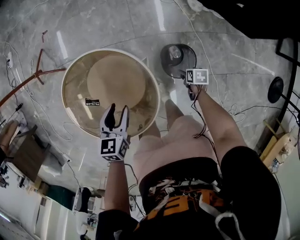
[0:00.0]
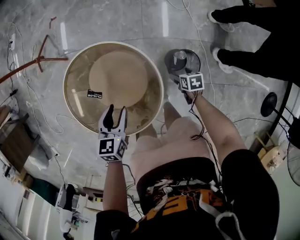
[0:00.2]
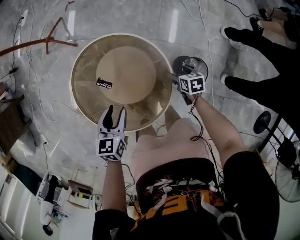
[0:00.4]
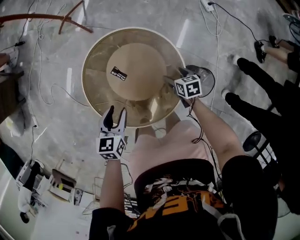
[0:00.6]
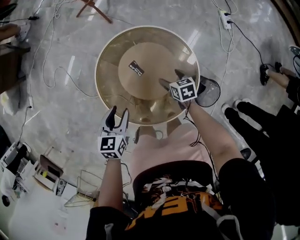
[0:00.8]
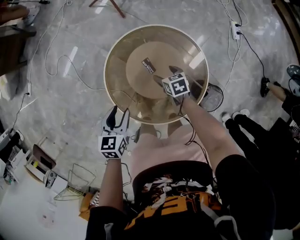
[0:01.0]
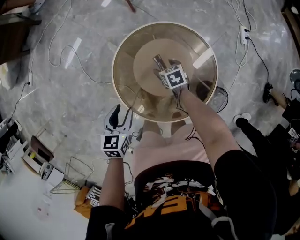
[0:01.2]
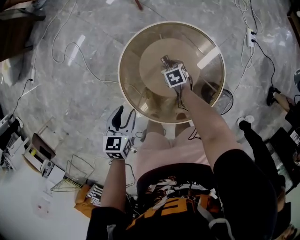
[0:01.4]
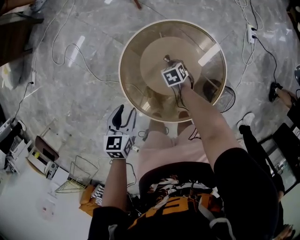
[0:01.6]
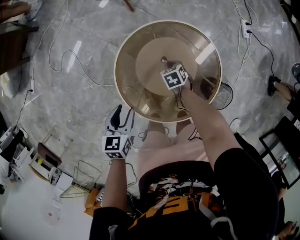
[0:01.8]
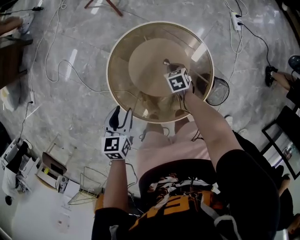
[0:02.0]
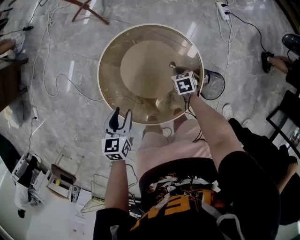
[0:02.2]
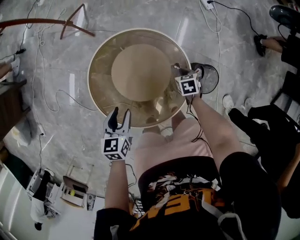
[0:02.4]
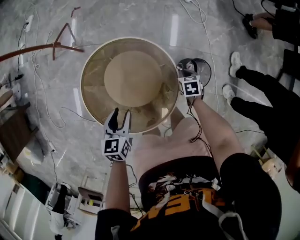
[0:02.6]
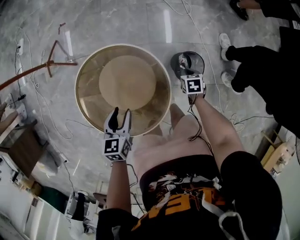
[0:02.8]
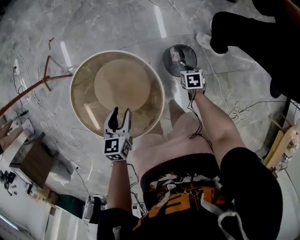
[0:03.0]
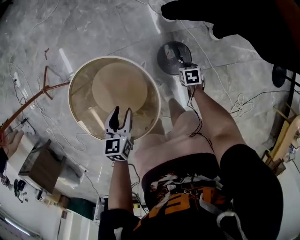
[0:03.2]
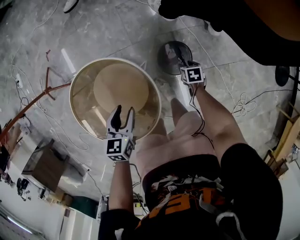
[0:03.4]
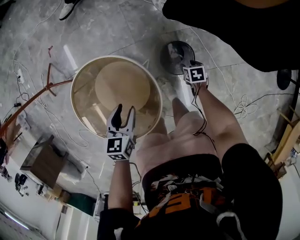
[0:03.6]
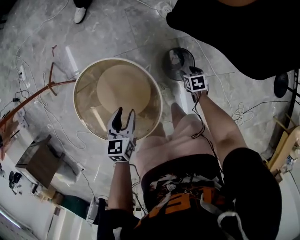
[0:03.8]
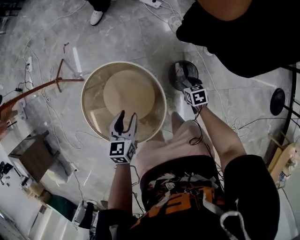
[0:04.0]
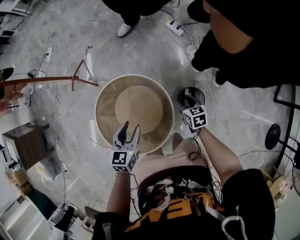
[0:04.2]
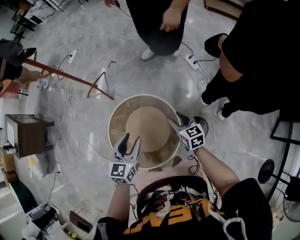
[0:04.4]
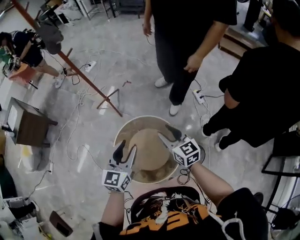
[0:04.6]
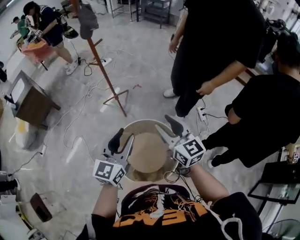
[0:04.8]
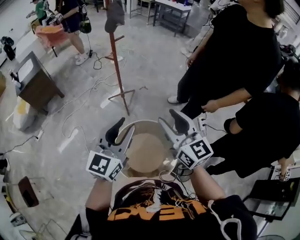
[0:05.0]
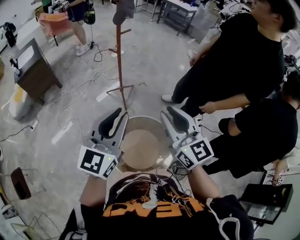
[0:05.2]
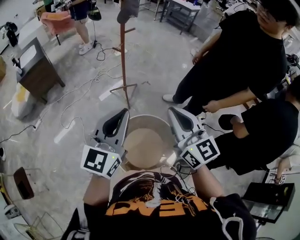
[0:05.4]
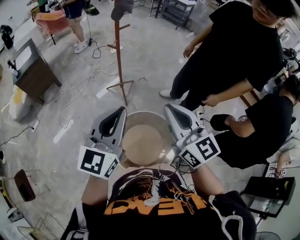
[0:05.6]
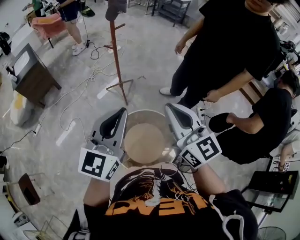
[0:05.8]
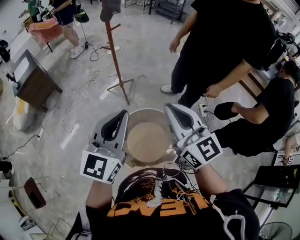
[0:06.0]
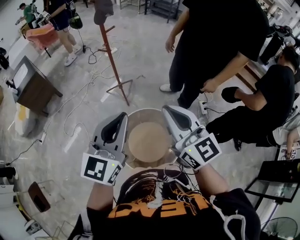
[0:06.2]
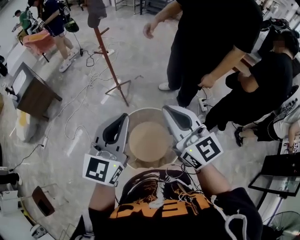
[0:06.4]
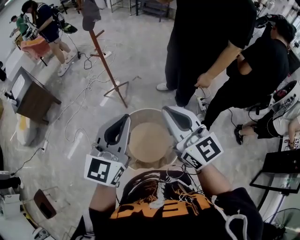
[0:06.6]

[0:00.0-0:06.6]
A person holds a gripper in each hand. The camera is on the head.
0:00.0 to 0:01.6: The pair of grippers is taken about 50 cm. The left gripper swivels roughly 40 degrees. The right gripper twists some 70 degrees counterclockwise, seen from behind, and closes.
0:01.6 to 0:03.2: The pair of grippers is taken about 50 cm. The left gripper changes its angle by some 50 degrees; the right gripper rolls clockwise, seen from behind, by approximately 70 degrees.
0:03.2 to 0:05.0: The two grippers go about 70 cm upward. The right gripper points its fingers about 70 degrees further upward, and opens its fingers. Meanwhile the left gripper points its fingers some 50 degrees further upward.
0:05.0 to 0:06.6: The left gripper goes roughly 5 cm to the right, and closes up. Meanwhile the right gripper shifts by about 5 cm, and closes its fingers.

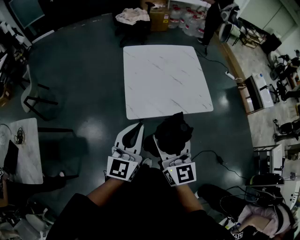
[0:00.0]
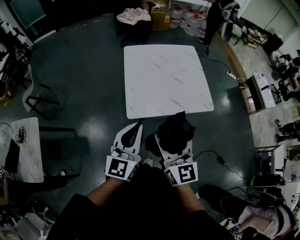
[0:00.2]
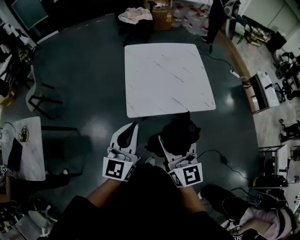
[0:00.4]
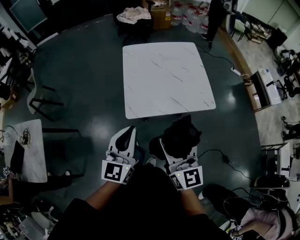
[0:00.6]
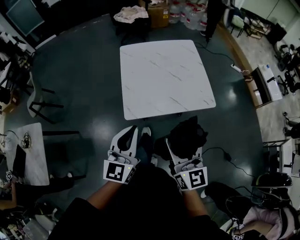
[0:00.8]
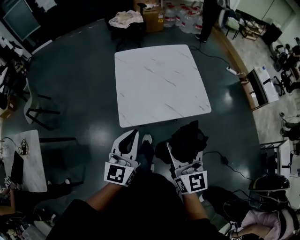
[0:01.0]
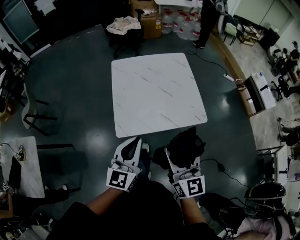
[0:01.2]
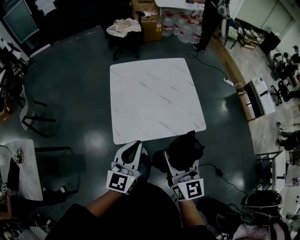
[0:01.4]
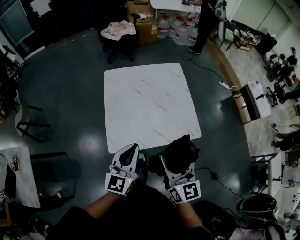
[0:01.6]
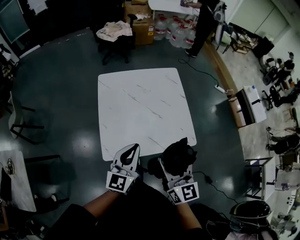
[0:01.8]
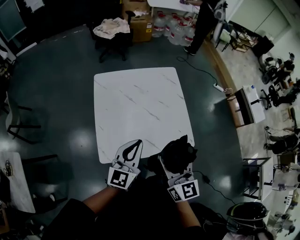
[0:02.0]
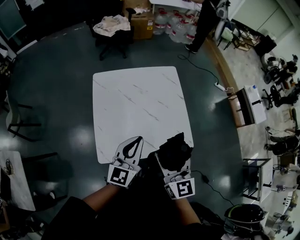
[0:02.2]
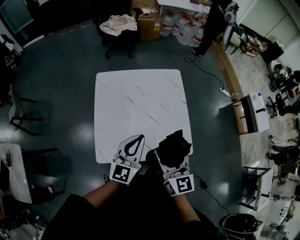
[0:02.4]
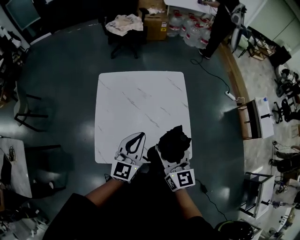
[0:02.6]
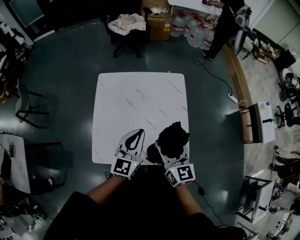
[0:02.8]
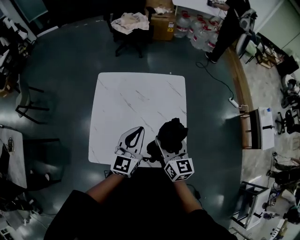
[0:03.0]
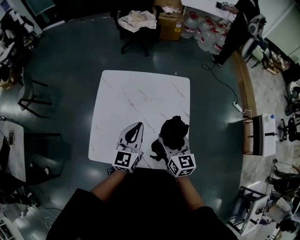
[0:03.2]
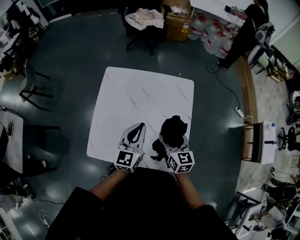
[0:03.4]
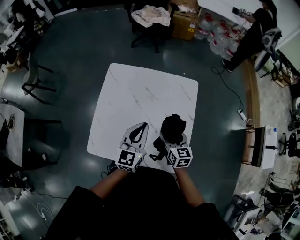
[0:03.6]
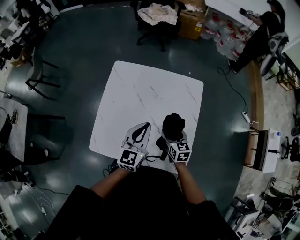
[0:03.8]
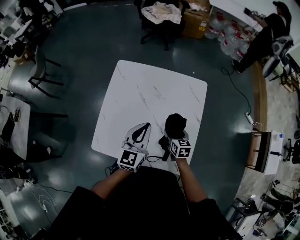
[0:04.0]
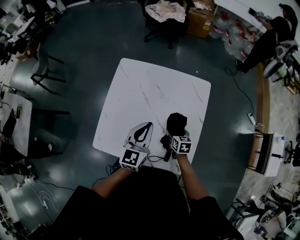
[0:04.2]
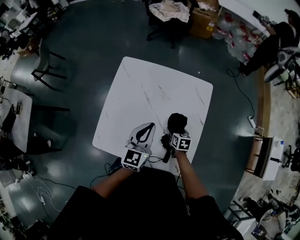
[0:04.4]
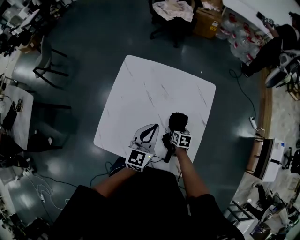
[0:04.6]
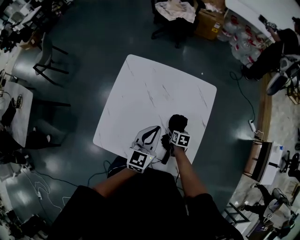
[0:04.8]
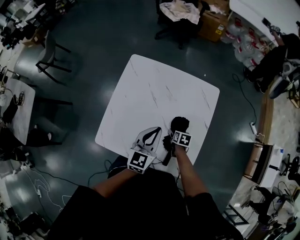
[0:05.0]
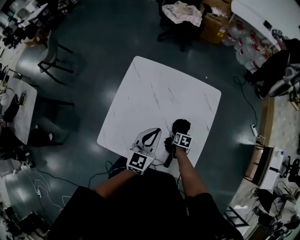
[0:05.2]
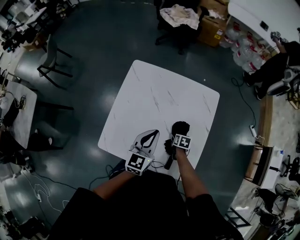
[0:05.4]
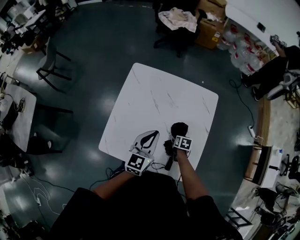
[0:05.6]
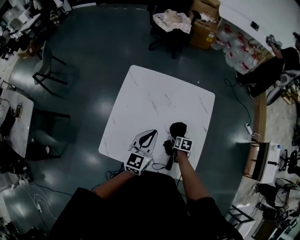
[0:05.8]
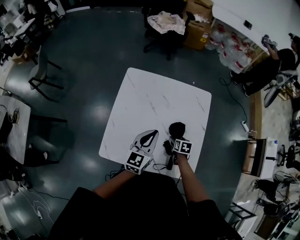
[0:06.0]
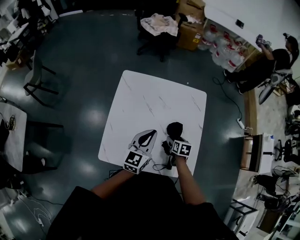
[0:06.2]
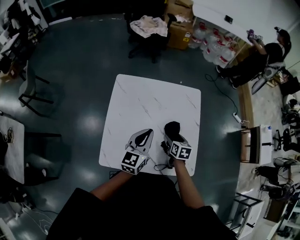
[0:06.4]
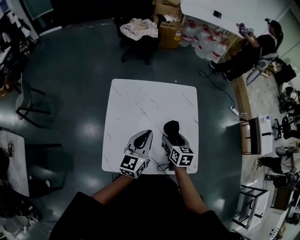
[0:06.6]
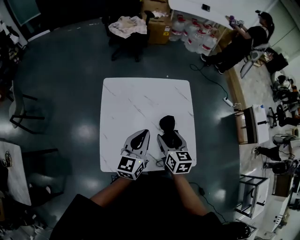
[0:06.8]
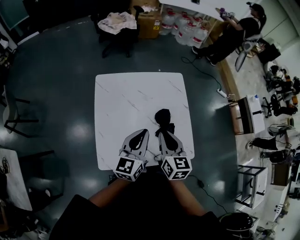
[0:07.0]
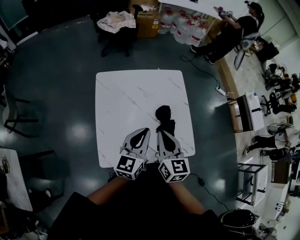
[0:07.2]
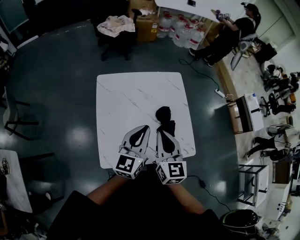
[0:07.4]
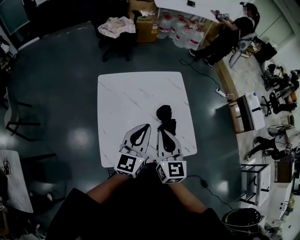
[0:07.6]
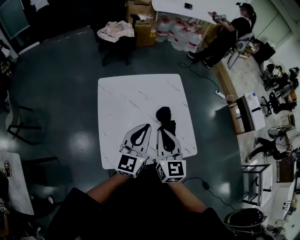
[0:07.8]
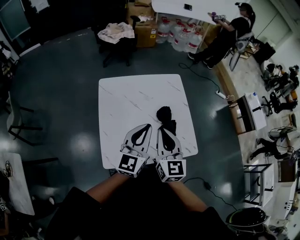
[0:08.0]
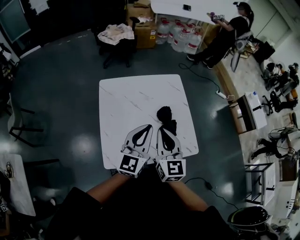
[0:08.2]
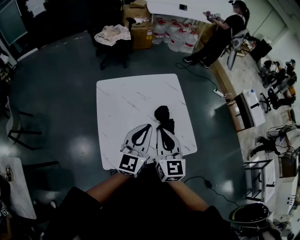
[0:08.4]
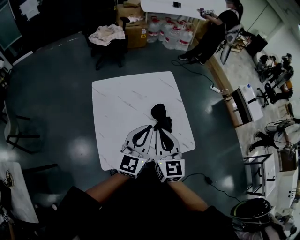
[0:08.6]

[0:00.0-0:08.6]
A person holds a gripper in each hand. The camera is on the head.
0:00.0 to 0:01.4: The left gripper moves forward and to the right, about 15 cm, while the right gripper moves to the right and forward, about 20 cm.
0:01.4 to 0:02.8: The right gripper goes approximately 30 cm forward, while the left gripper heads forward and to the right, covering approximately 30 cm.
0:02.8 to 0:04.4: The right gripper goes approximately 35 cm downward and forward, and points its fingers some 40 degrees further downward. The left gripper heads forward and downward, covering about 10 cm.
0:04.4 to 0:05.8: The left gripper travels to the left by approximately 5 cm.
0:05.8 to 0:07.2: The right gripper heads upward, covering roughly 35 cm, tilts its fingers about 50 degrees upward, and closes its fingers. The left gripper is displaced upward and backward by about 10 cm, and turns by roughly 20 degrees.
0:07.2 to 0:08.6: The right gripper is displaced backward by approximately 5 cm. The left gripper ends up about 5 cm from where it was.

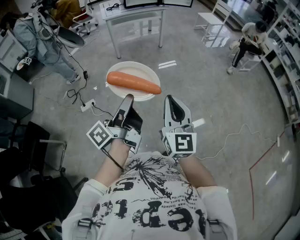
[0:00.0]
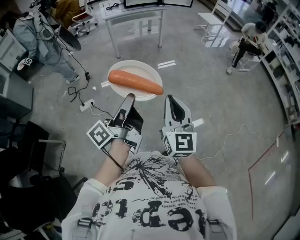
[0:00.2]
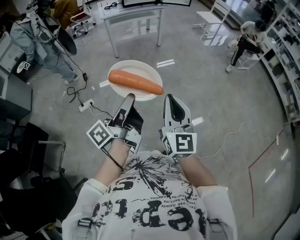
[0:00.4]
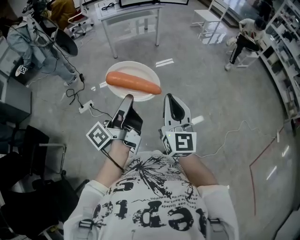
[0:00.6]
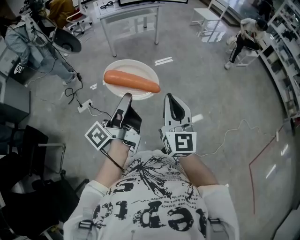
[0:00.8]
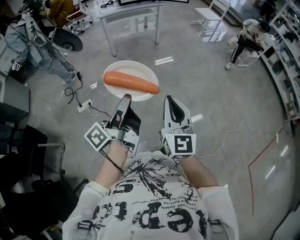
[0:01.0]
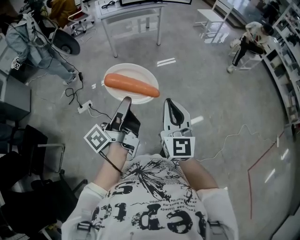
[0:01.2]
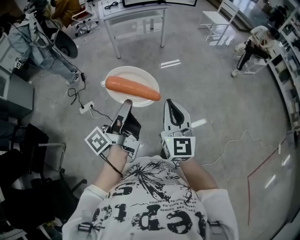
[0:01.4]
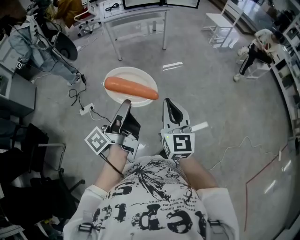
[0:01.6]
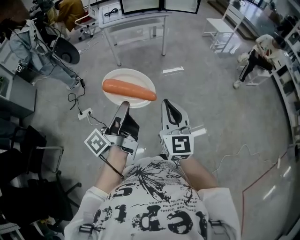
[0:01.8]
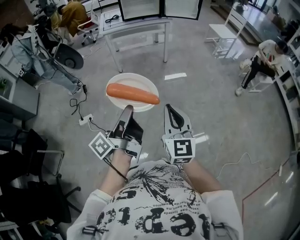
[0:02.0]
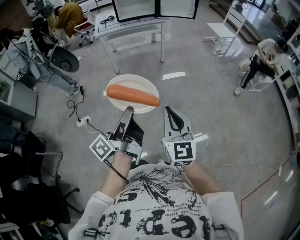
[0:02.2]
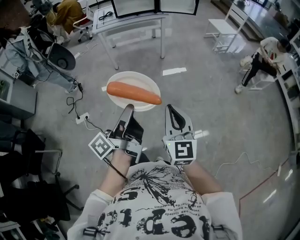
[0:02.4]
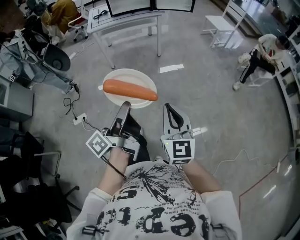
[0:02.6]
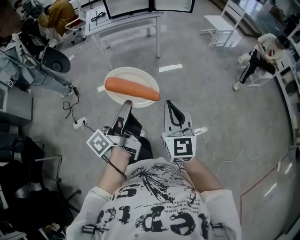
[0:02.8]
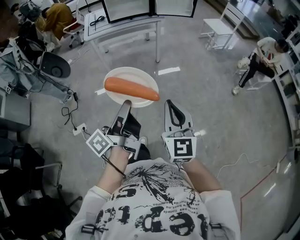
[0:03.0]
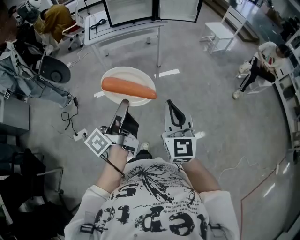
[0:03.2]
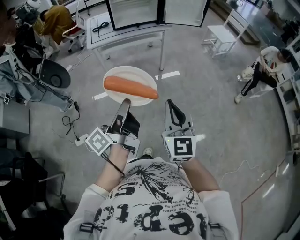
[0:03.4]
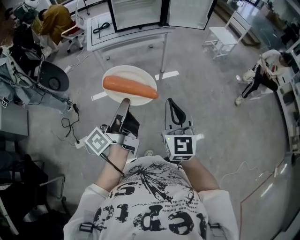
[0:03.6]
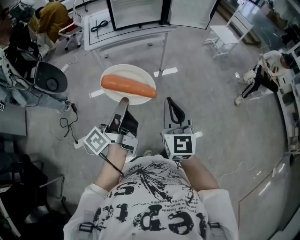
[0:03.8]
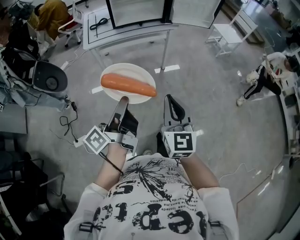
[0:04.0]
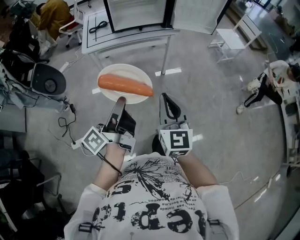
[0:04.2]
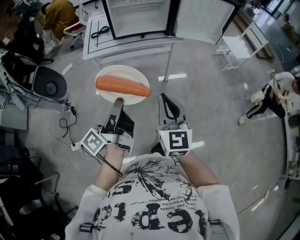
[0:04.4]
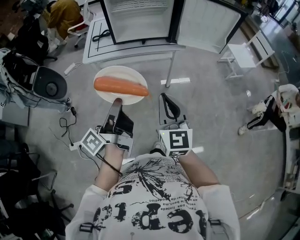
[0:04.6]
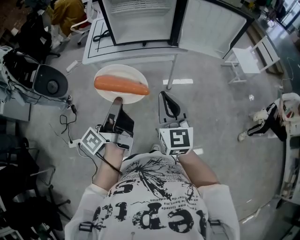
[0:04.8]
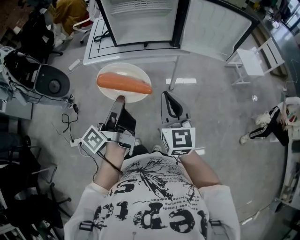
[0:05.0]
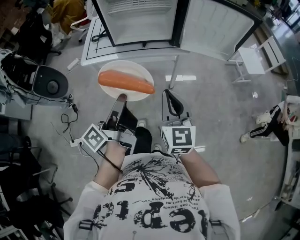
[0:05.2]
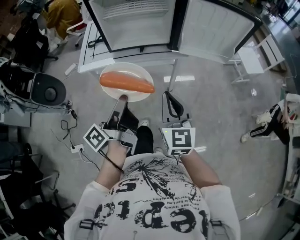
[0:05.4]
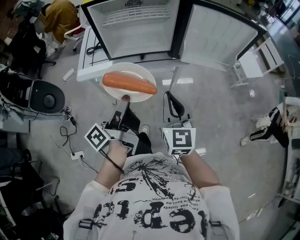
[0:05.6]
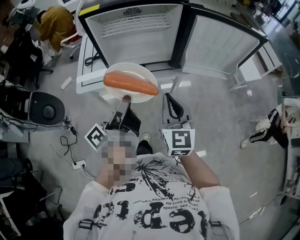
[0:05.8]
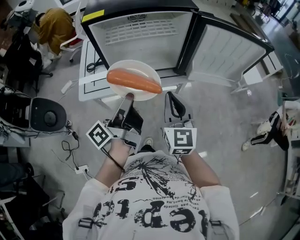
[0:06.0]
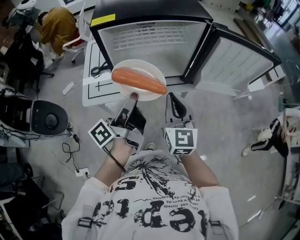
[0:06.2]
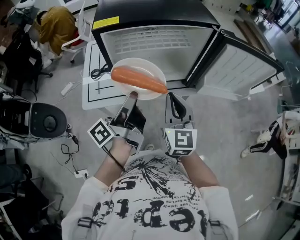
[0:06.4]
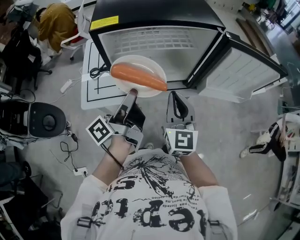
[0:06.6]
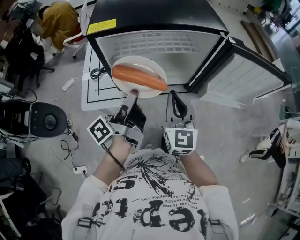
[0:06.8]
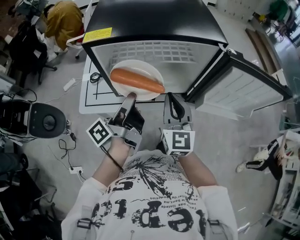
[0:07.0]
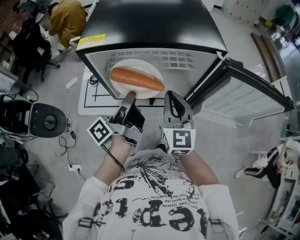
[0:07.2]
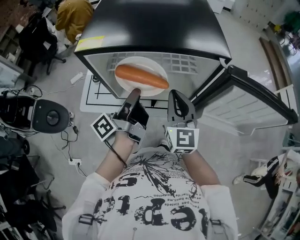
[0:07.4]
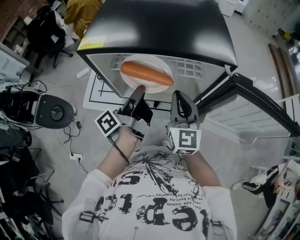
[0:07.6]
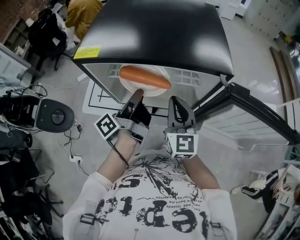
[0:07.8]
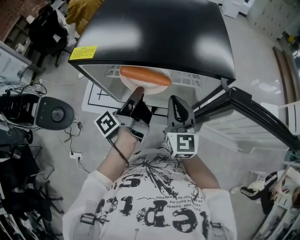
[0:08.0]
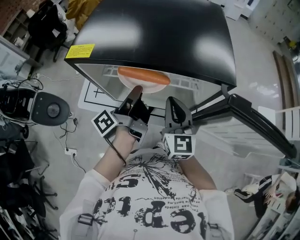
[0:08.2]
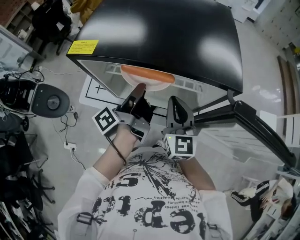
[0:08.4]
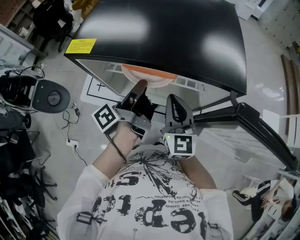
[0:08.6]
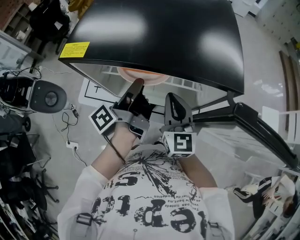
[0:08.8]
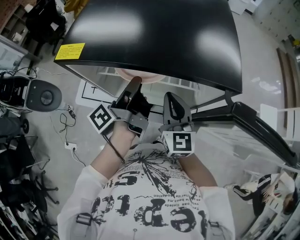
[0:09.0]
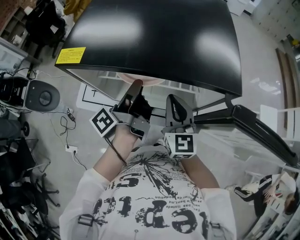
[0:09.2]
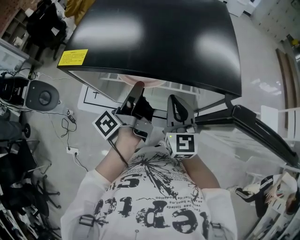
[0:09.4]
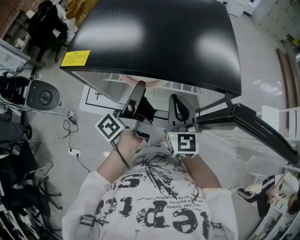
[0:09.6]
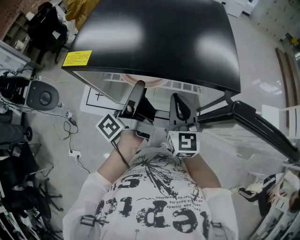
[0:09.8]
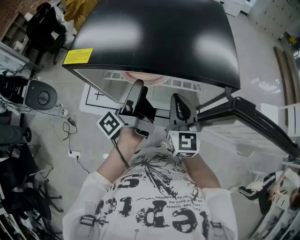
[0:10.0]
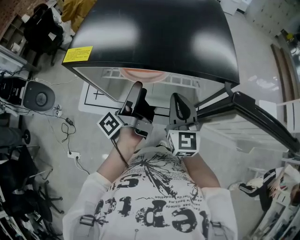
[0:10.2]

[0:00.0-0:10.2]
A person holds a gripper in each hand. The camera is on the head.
0:00.0 to 0:01.4: The right gripper changes place by some 10 cm.
0:01.4 to 0:03.0: The right gripper changes place by approximately 30 cm.
0:03.0 to 0:04.4: The right gripper moves about 40 cm.
0:04.4 to 0:05.8: The right gripper shifts by approximately 30 cm.
0:05.8 to 0:07.2: The right gripper ends up about 25 cm from where it was.
0:07.2 to 0:08.8: The right gripper shifts by about 5 cm.
